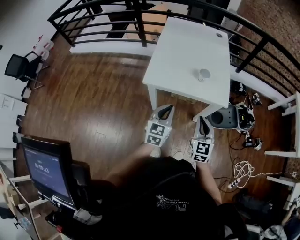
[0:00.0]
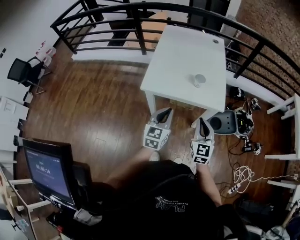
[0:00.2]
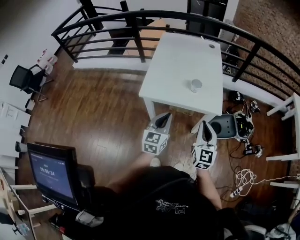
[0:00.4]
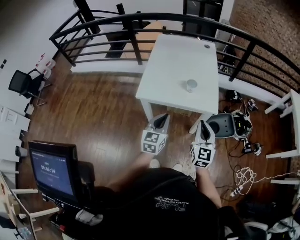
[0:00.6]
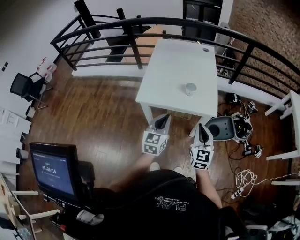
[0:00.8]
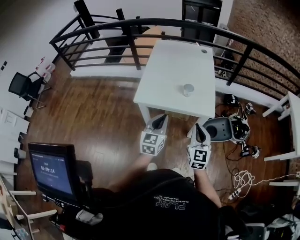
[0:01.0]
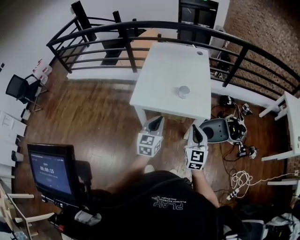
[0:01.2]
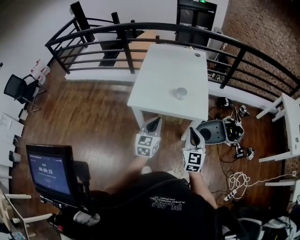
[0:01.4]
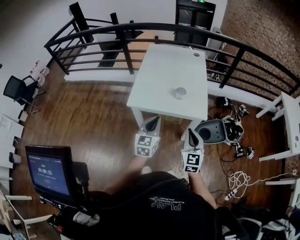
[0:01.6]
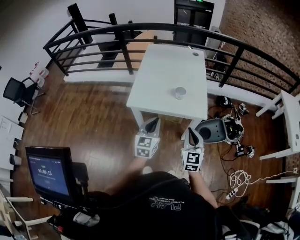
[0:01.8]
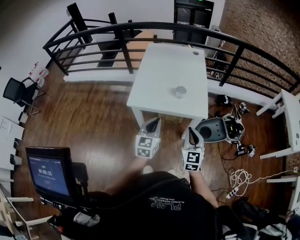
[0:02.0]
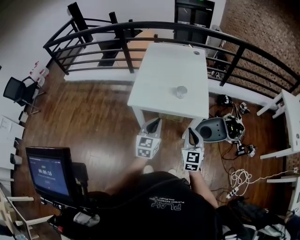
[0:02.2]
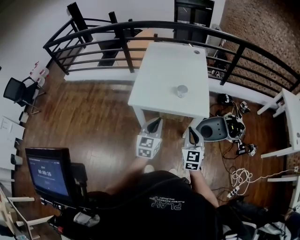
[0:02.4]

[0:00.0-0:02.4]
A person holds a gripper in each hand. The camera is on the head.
0:00.0 to 0:01.2: The right gripper heads upward and to the right, covering about 10 cm, while the left gripper moves about 5 cm.
0:01.2 to 0:02.4: The grippers move only a little.

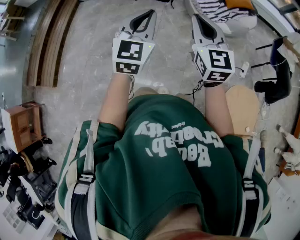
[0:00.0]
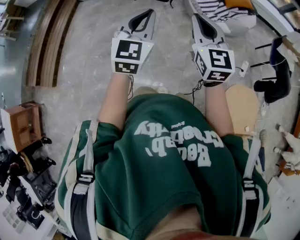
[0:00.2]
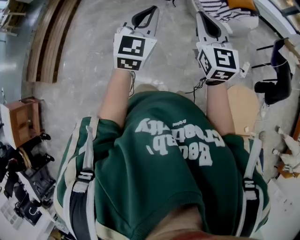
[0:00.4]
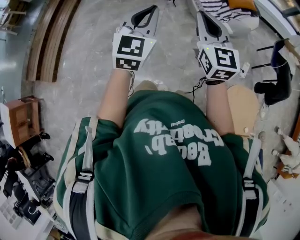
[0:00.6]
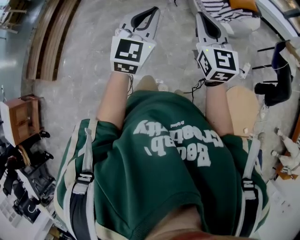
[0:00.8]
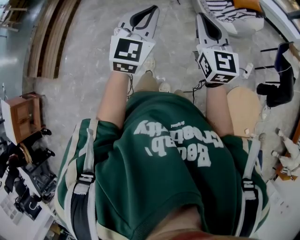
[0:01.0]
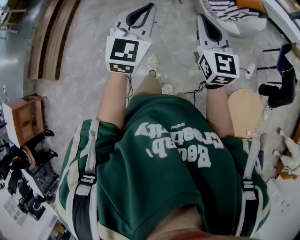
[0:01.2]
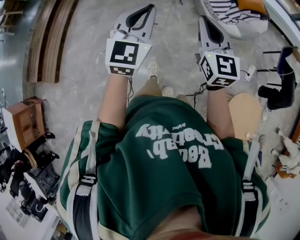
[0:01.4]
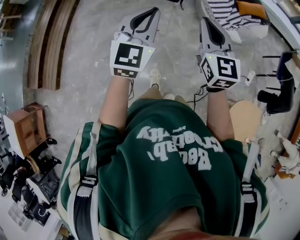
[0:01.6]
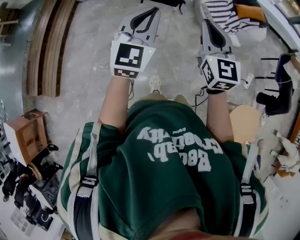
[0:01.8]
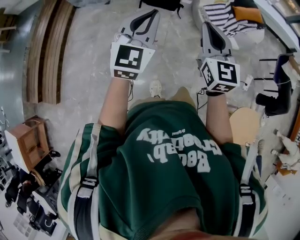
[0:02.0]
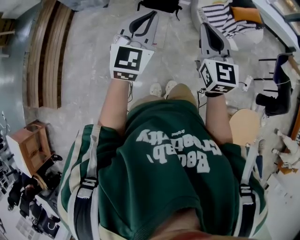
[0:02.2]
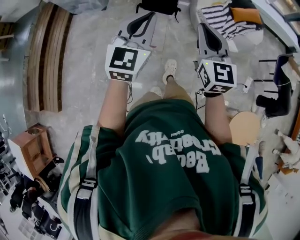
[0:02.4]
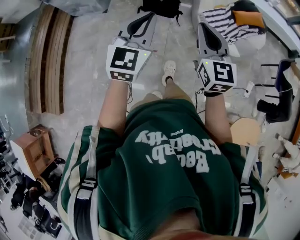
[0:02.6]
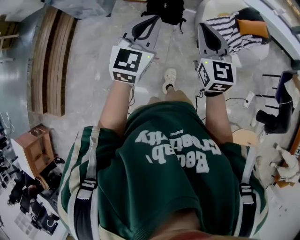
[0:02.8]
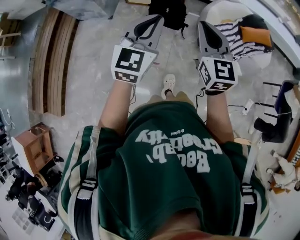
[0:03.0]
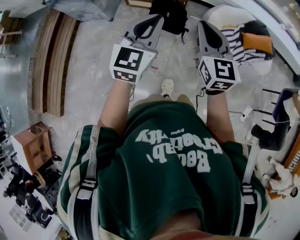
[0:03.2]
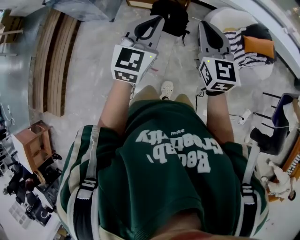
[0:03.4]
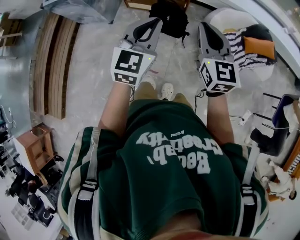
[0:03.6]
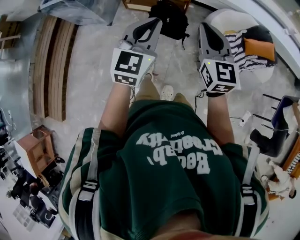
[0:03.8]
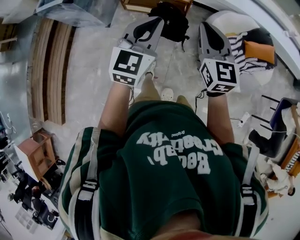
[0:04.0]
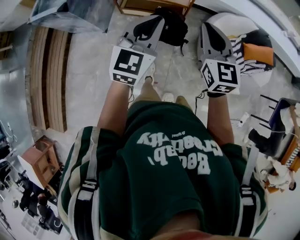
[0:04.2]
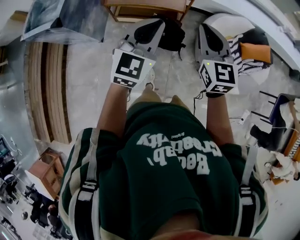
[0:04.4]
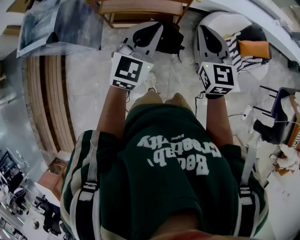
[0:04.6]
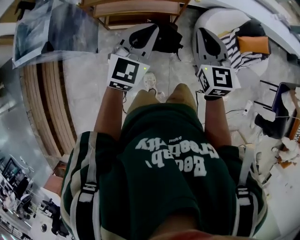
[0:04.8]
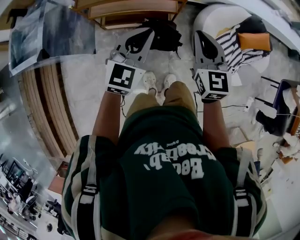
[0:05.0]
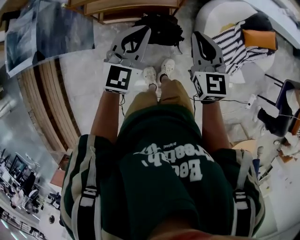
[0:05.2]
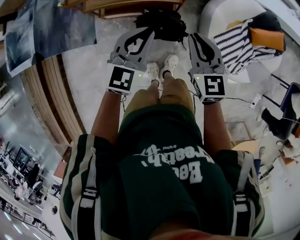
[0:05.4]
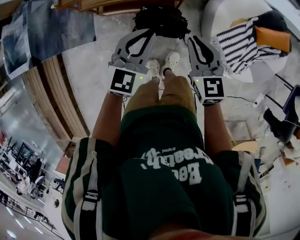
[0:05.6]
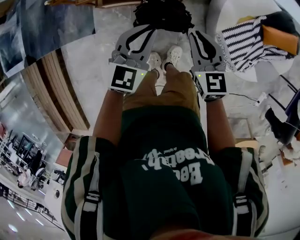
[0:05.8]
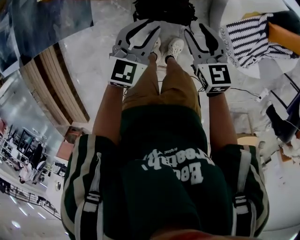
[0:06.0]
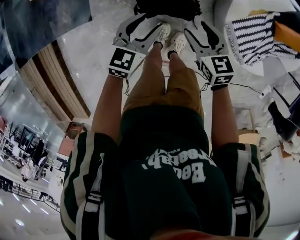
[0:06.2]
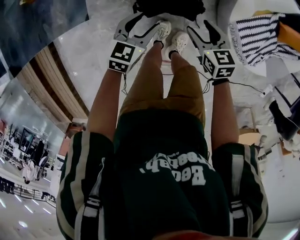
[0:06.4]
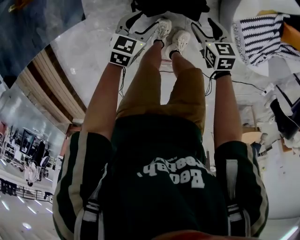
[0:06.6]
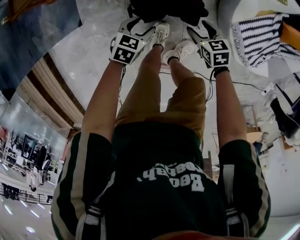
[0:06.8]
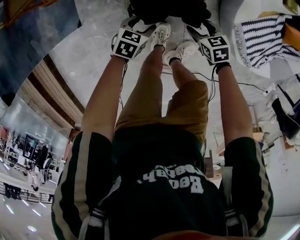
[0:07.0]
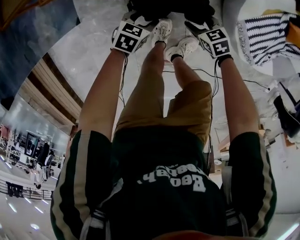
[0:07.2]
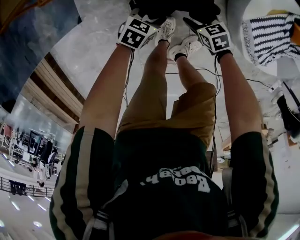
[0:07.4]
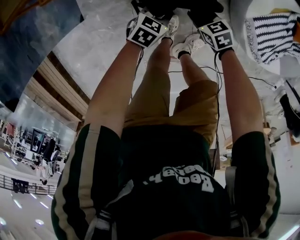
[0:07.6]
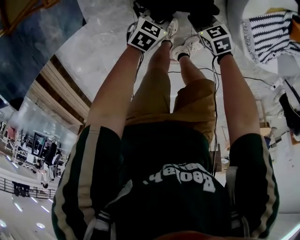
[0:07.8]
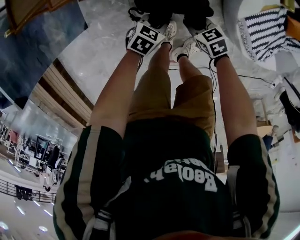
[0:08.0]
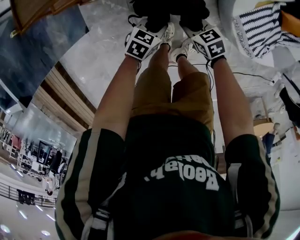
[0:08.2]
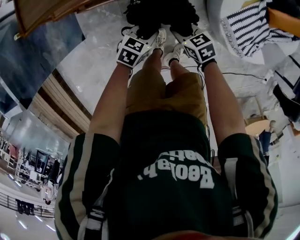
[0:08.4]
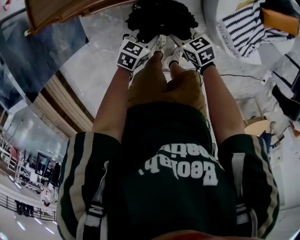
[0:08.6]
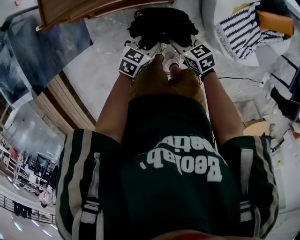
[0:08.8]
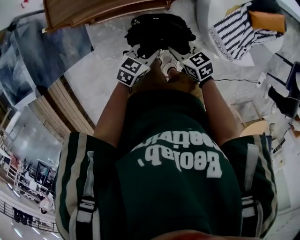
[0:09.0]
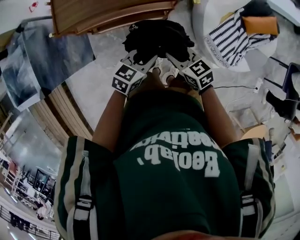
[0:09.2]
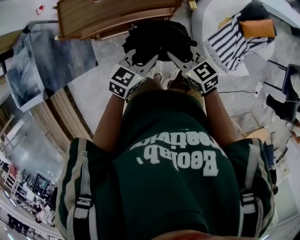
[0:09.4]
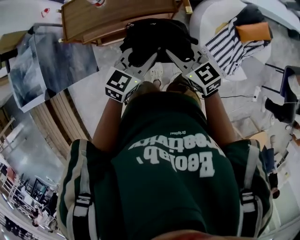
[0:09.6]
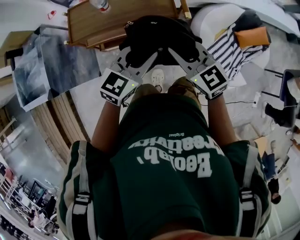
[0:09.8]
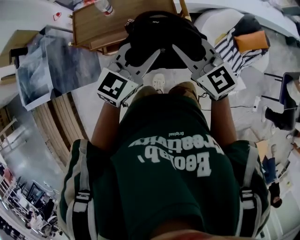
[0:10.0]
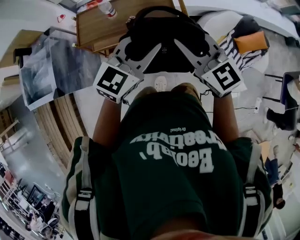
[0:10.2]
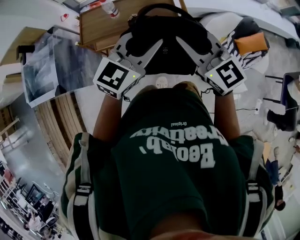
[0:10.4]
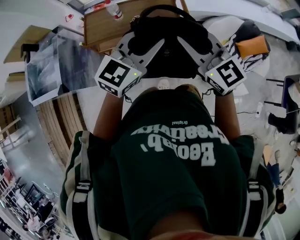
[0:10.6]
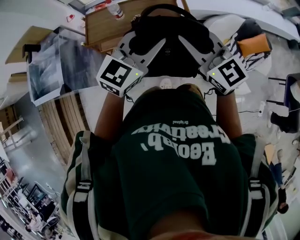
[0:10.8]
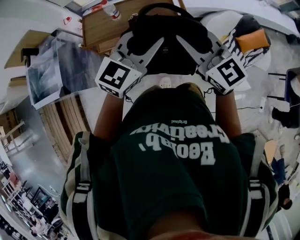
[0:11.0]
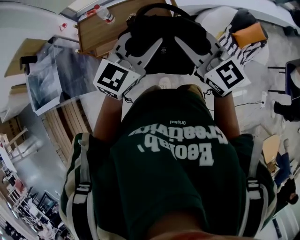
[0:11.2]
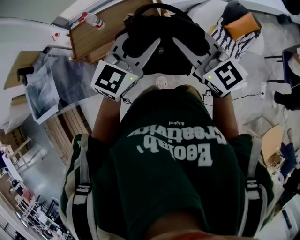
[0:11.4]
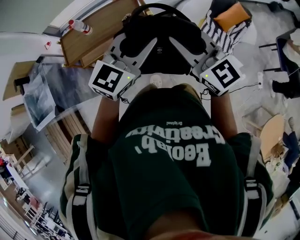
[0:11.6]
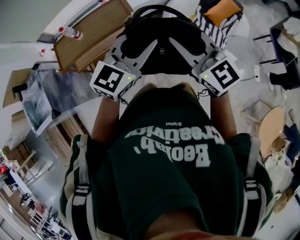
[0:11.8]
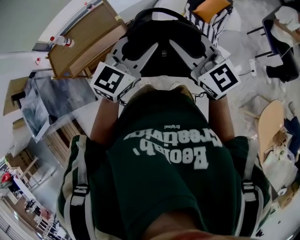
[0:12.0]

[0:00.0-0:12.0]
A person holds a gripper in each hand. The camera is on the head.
0:00.0 to 0:01.6: Both grippers move forward and to the left, some 25 cm.
0:01.6 to 0:03.0: Both grippers are carried forward, about 40 cm.
0:03.0 to 0:04.4: The two grippers travel together, forward, roughly 50 cm.
0:04.4 to 0:06.0: The two grippers go roughly 40 cm downward and forward. The left gripper changes its angle by approximately 20 degrees, and opens. The right gripper changes its angle by about 30 degrees, and opens up.
0:06.0 to 0:07.6: The grippers both shift downward by roughly 40 cm. The right gripper rotates some 30 degrees, and closes, while the left gripper swivels roughly 40 degrees, and opens, then closes once more.
0:07.6 to 0:09.0: The grippers both shift upward by some 40 cm.
0:09.0 to 0:10.4: Both grippers move upward, roughly 40 cm. The left gripper swivels about 40 degrees. The right gripper angles its fingers upward, by about 30 degrees.
0:10.4 to 0:12.0: The left gripper shifts approximately 35 cm to the right, and turns by some 20 degrees. Meanwhile the right gripper travels to the right and backward by some 35 cm, and turns by roughly 20 degrees.

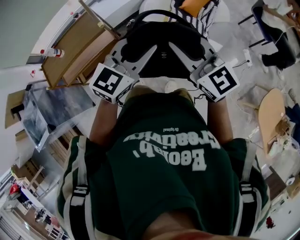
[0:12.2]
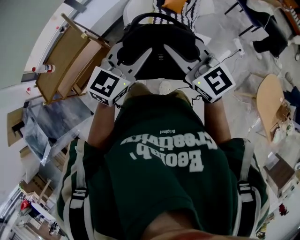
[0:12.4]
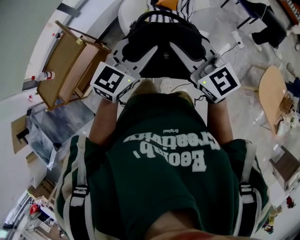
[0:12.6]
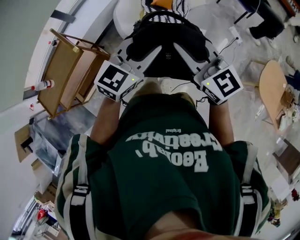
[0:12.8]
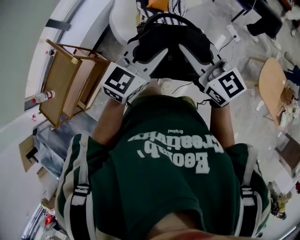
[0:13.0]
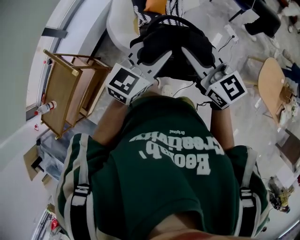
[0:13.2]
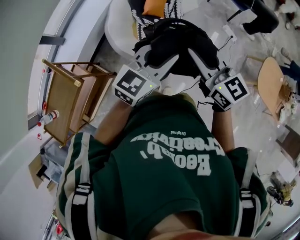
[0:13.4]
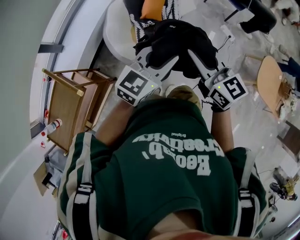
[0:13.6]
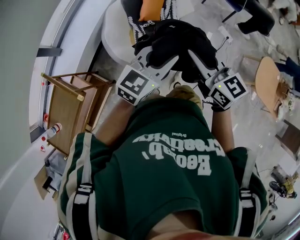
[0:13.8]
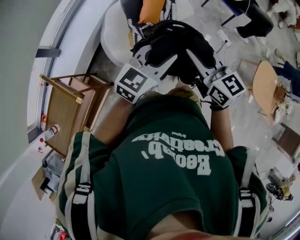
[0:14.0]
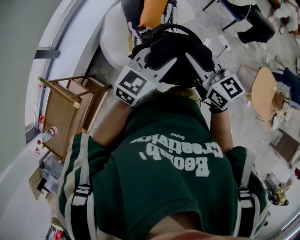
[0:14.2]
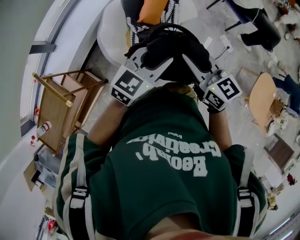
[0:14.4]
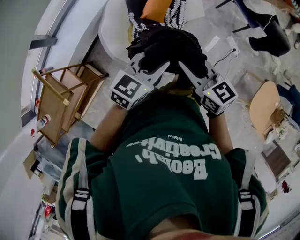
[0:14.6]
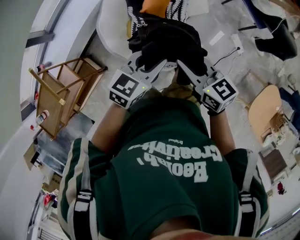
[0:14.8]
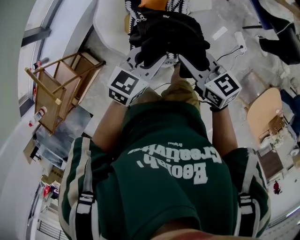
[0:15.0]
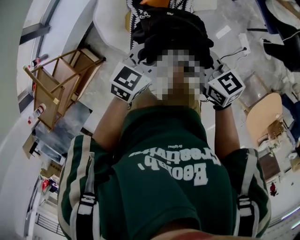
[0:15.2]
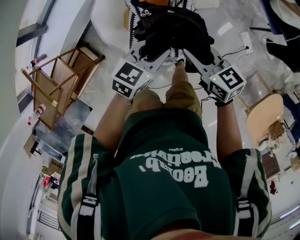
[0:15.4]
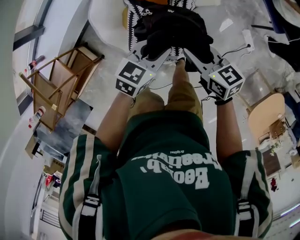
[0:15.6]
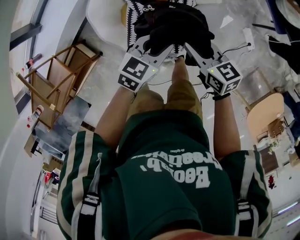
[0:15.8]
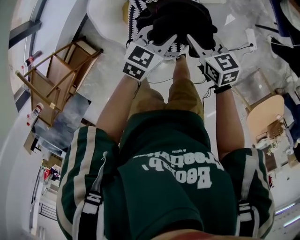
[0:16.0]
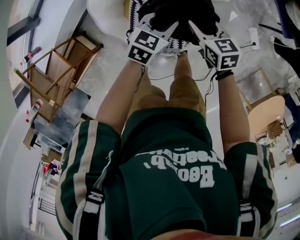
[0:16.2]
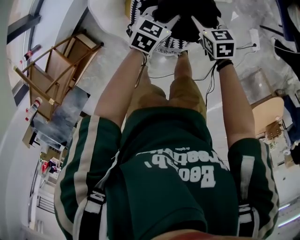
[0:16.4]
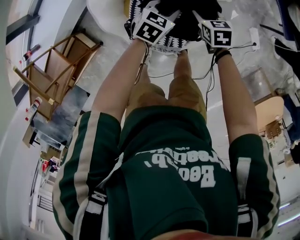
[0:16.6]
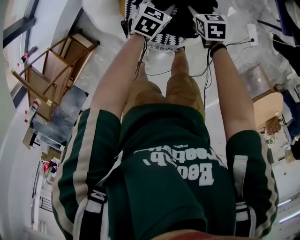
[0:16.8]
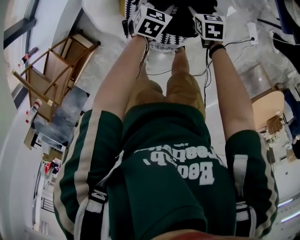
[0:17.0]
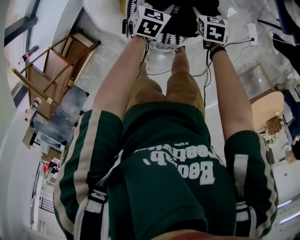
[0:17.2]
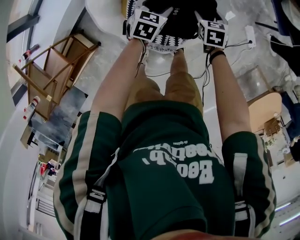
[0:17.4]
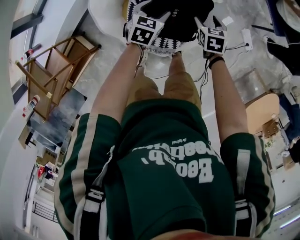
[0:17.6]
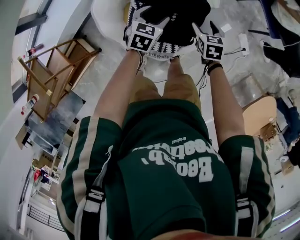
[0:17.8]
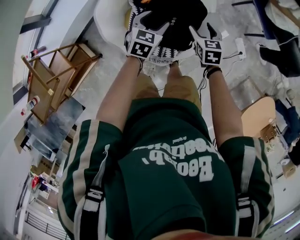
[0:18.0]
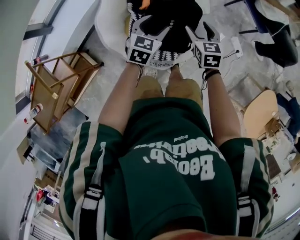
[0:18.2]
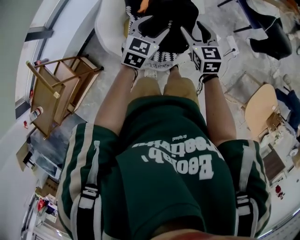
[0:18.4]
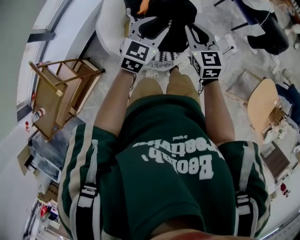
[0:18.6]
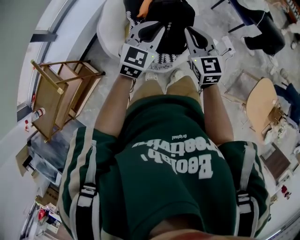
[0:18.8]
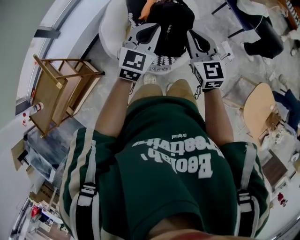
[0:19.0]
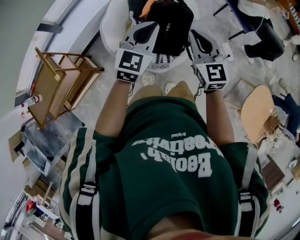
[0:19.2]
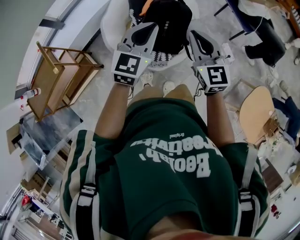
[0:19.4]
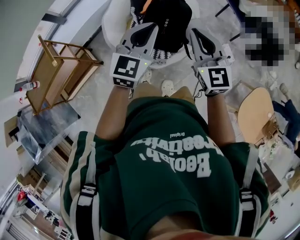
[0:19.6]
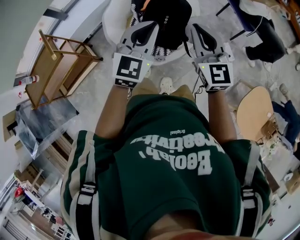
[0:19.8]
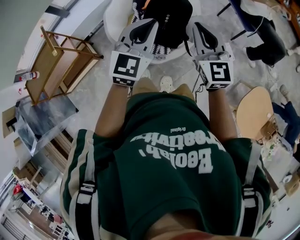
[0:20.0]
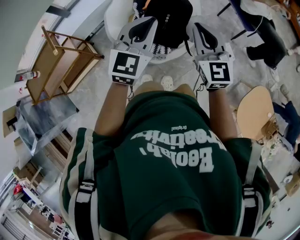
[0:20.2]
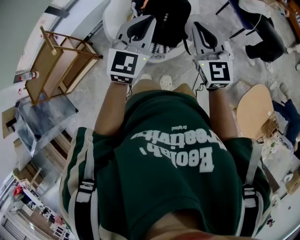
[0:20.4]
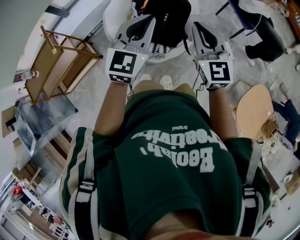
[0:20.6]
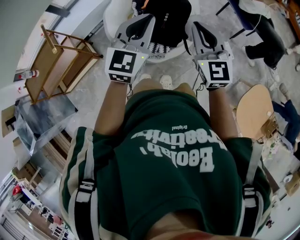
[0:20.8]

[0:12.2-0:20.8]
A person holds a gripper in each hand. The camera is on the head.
0:12.2 to 0:13.6: The left gripper shifts by roughly 30 cm, and changes its angle by some 30 degrees. The right gripper shifts by about 30 cm, and turns by about 40 degrees.
0:13.6 to 0:15.0: The grippers both shift forward and downward by roughly 35 cm. The left gripper turns by roughly 30 degrees. Meanwhile the right gripper turns by approximately 30 degrees.
0:15.0 to 0:16.6: Both grippers move downward and forward, about 35 cm. The right gripper points its fingers some 30 degrees further downward, and opens its fingers.
0:16.6 to 0:18.0: The grippers both shift upward and backward by roughly 15 cm. The left gripper opens.
0:18.0 to 0:19.4: The grippers both shift upward and backward by roughly 40 cm. The right gripper angles its fingers upward, by some 30 degrees, and closes its fingers, while the left gripper changes its angle by some 30 degrees, and closes up.
0:19.4 to 0:20.8: The two grippers go about 10 cm backward.
